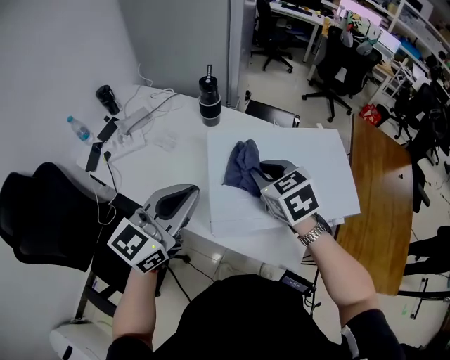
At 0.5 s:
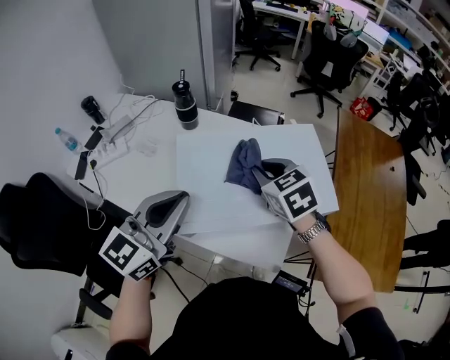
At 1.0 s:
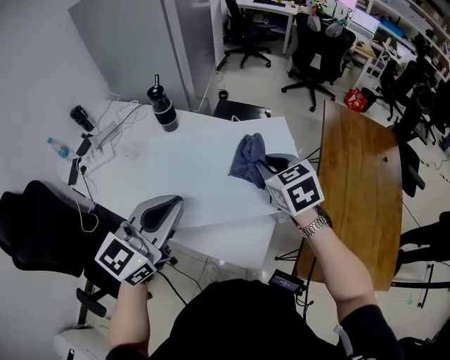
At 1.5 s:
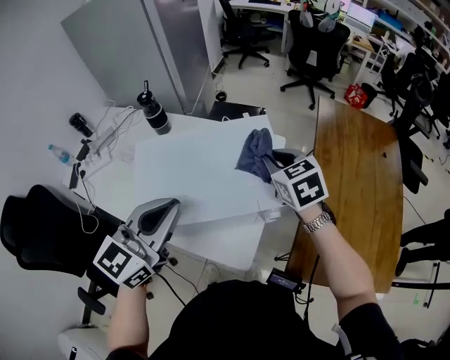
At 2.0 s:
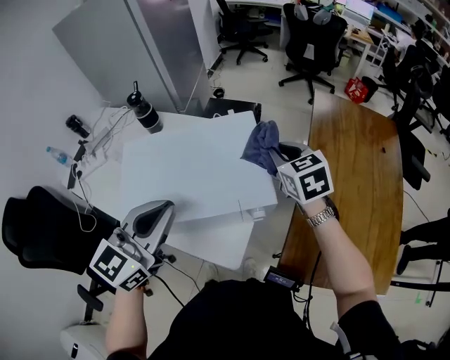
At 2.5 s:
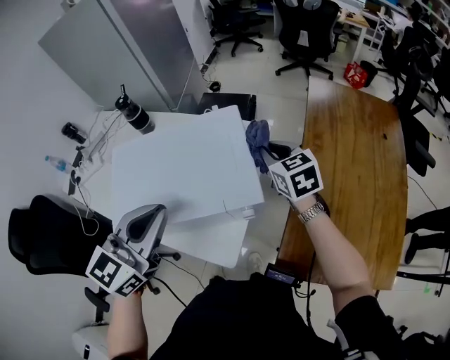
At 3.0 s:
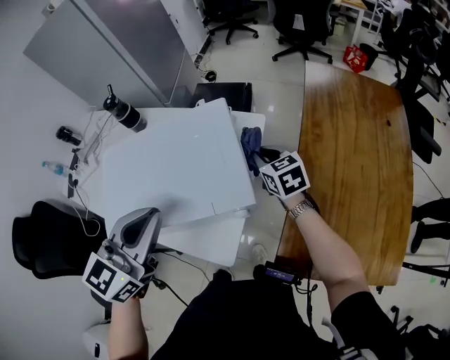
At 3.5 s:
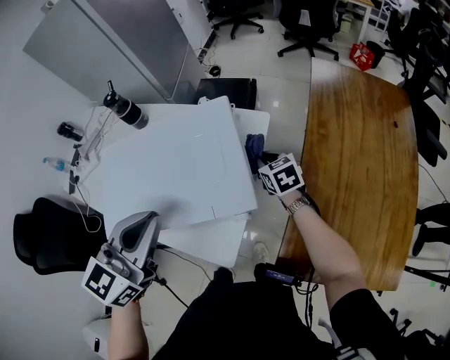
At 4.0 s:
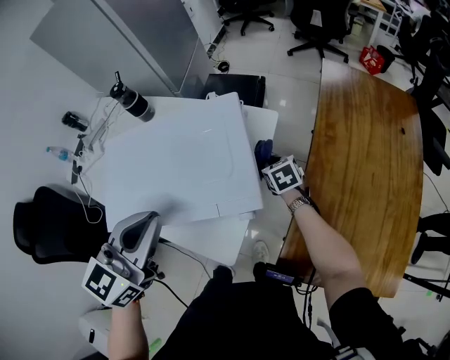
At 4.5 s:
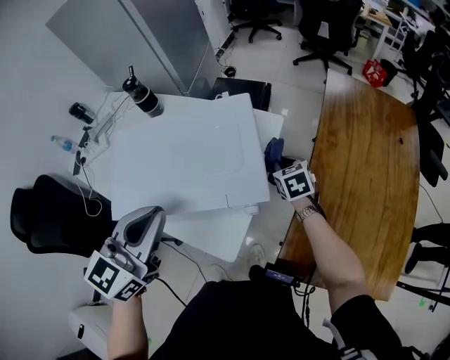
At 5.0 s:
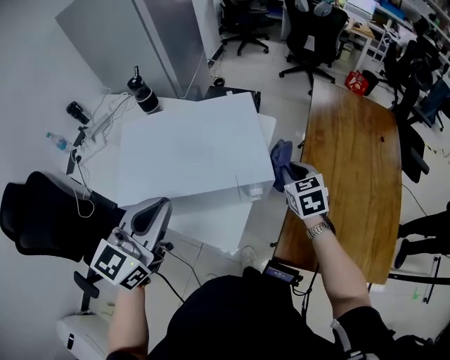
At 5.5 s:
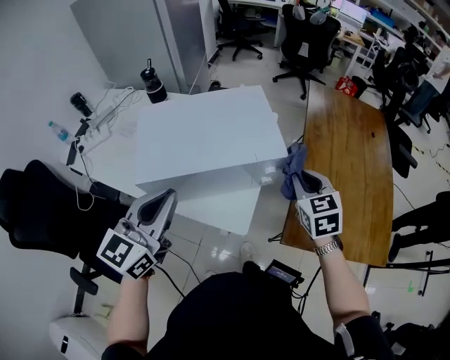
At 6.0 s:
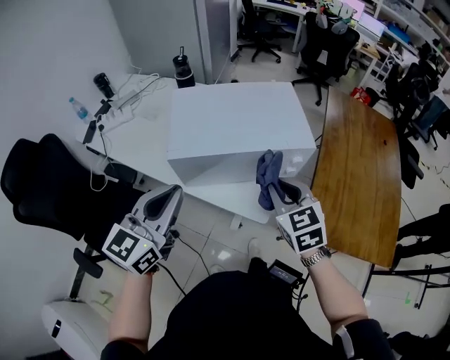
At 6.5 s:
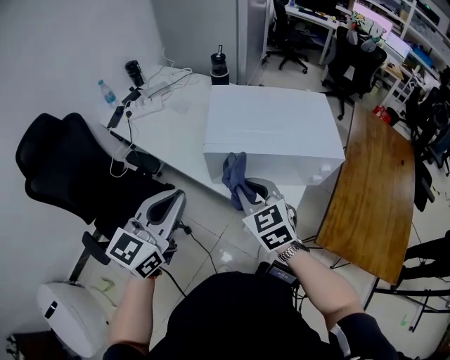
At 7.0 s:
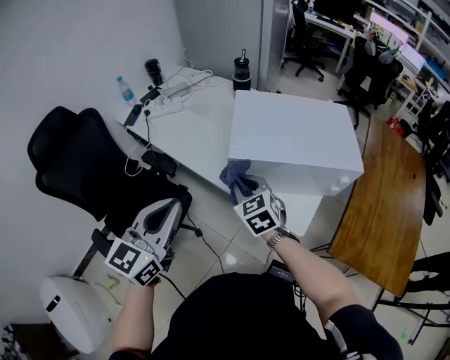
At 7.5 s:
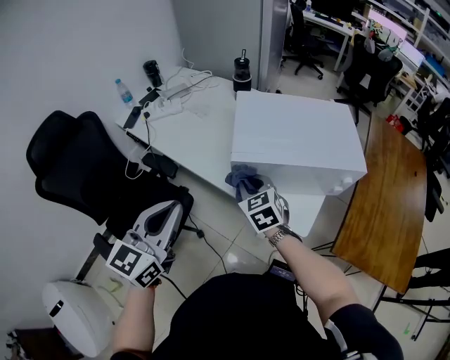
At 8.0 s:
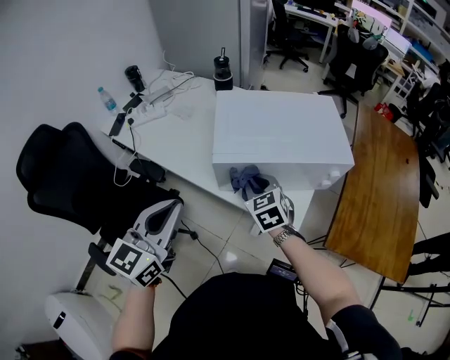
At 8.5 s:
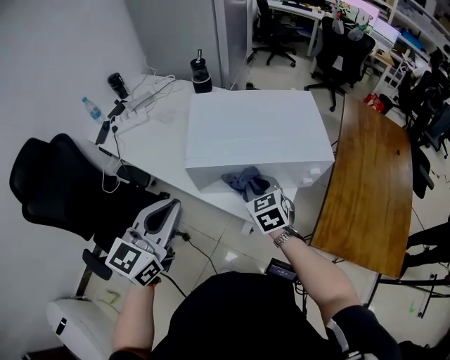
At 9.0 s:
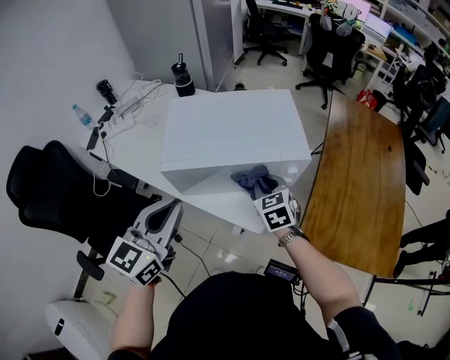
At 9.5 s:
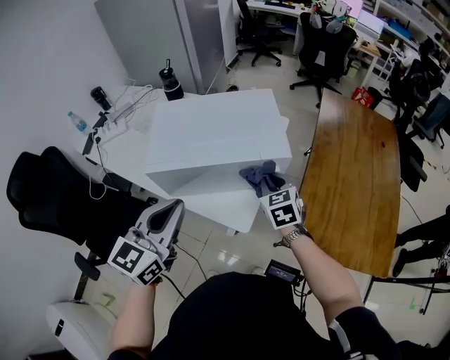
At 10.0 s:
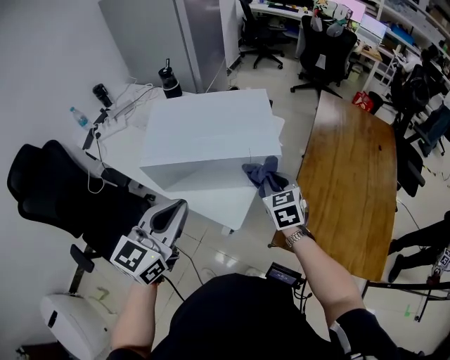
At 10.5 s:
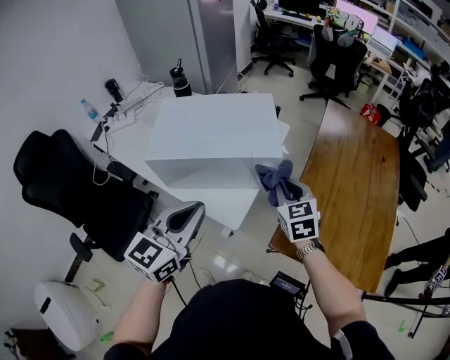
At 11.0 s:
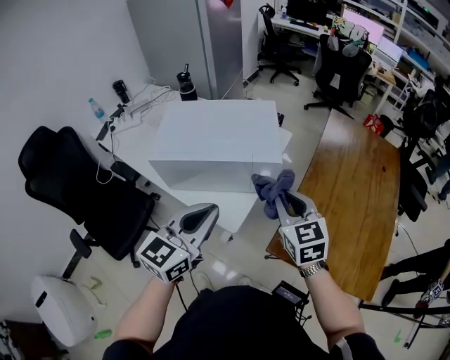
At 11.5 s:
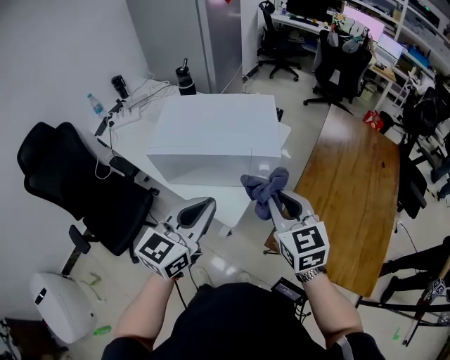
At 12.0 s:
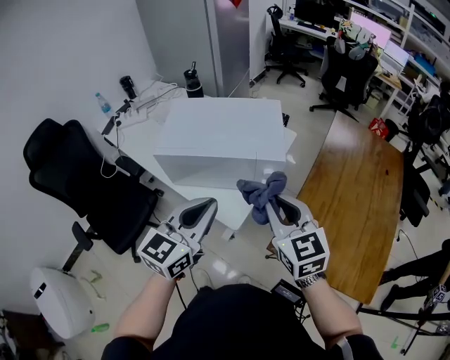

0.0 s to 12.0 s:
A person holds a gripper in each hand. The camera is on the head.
0.0 to 2.0 s: Both grippers move to the right, roughly 30 cm.
2.0 to 4.0 s: The right gripper goes some 25 cm downward.
4.0 to 6.0 s: The right gripper travels backward, upward and to the left by some 40 cm, and turns by approximately 30 degrees. Meanwhile the left gripper travels backward and to the left by roughly 25 cm.
6.0 to 8.0 s: The right gripper heads to the left, downward and forward, covering approximately 20 cm. Meanwhile the left gripper shifts some 10 cm to the left.
8.0 to 10.0 s: Both grippers move to the right, about 30 cm.
10.0 to 12.0 s: The left gripper moves to the right, approximately 5 cm. The right gripper shifts about 20 cm upward and backward, and rotates some 20 degrees.

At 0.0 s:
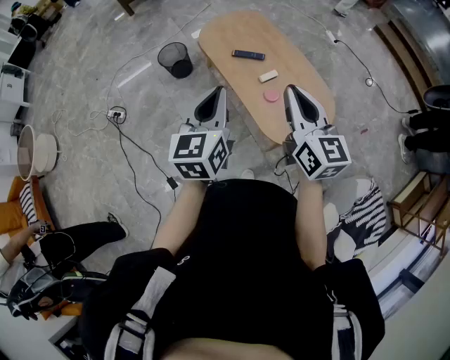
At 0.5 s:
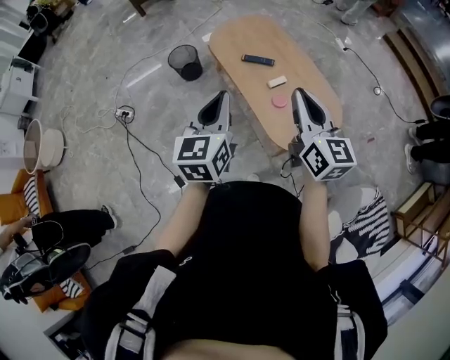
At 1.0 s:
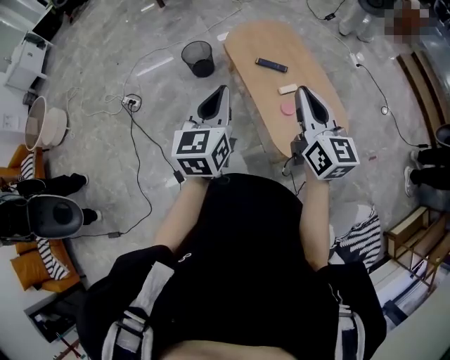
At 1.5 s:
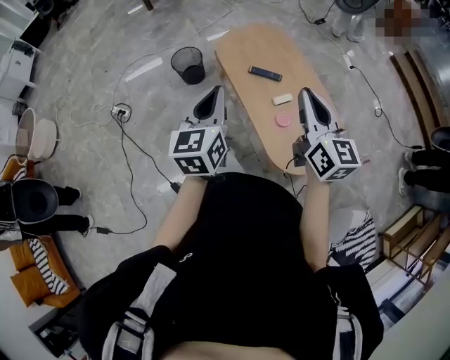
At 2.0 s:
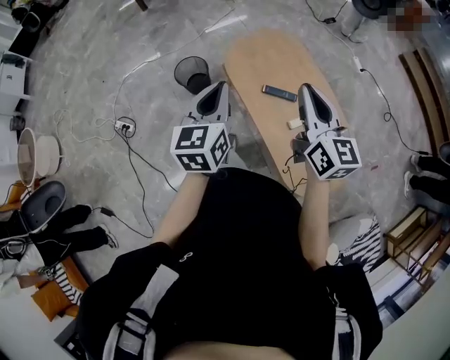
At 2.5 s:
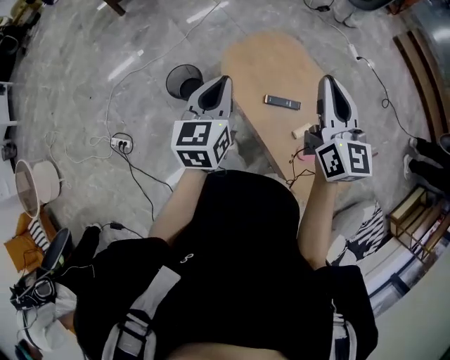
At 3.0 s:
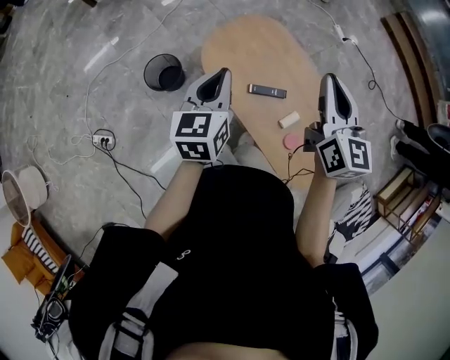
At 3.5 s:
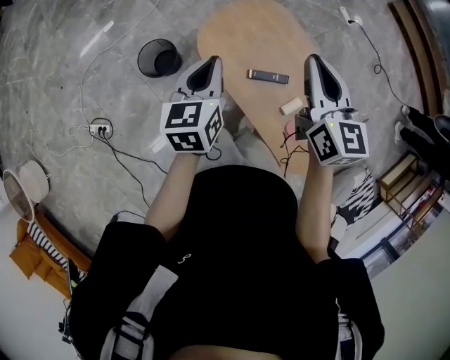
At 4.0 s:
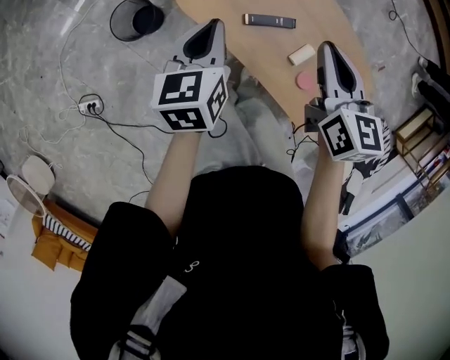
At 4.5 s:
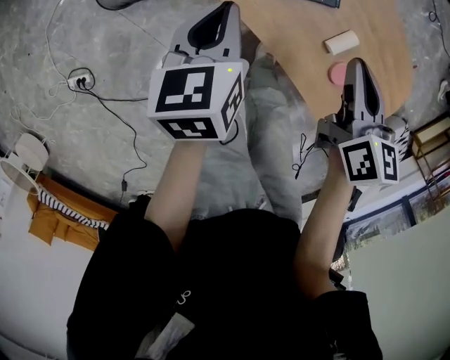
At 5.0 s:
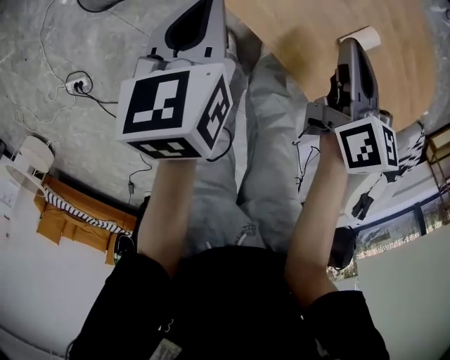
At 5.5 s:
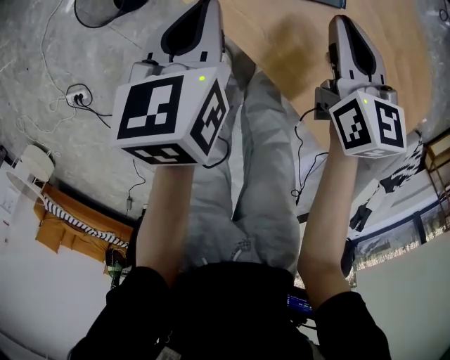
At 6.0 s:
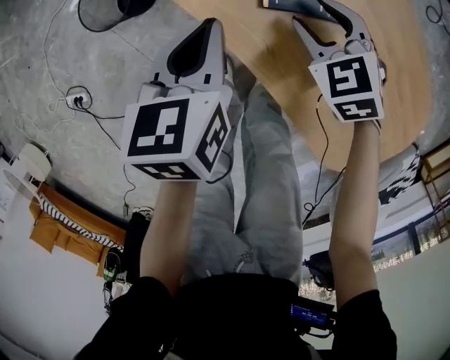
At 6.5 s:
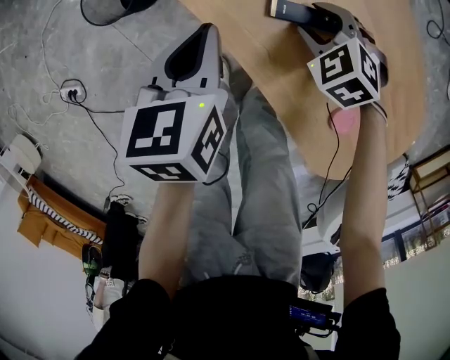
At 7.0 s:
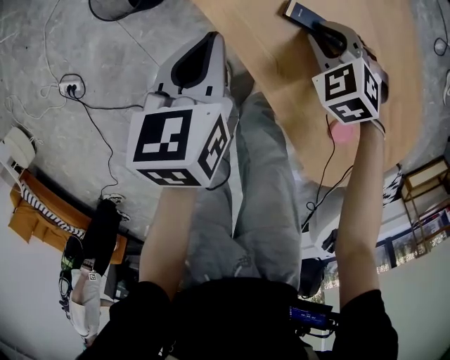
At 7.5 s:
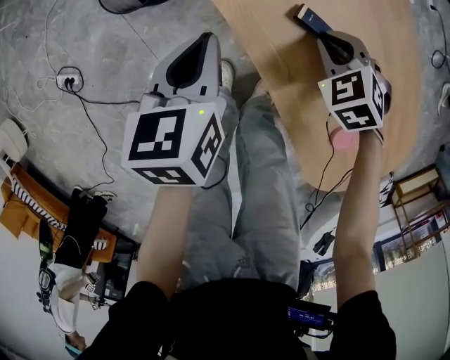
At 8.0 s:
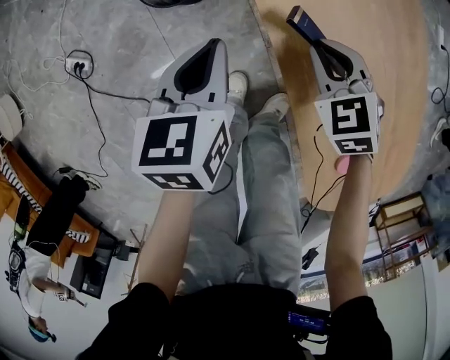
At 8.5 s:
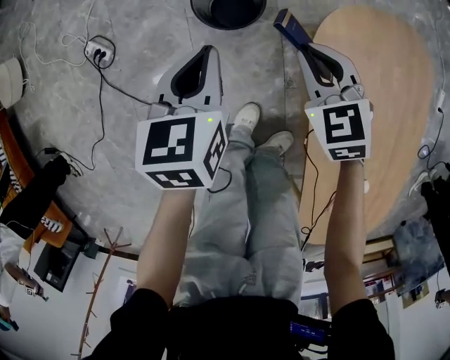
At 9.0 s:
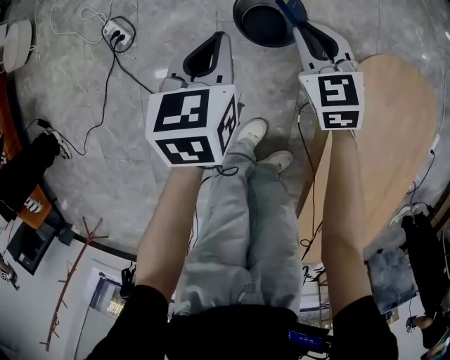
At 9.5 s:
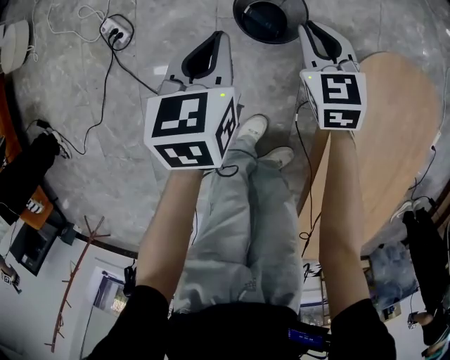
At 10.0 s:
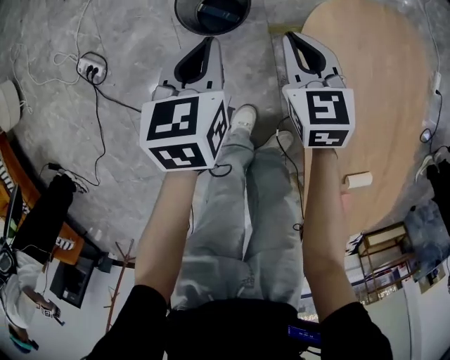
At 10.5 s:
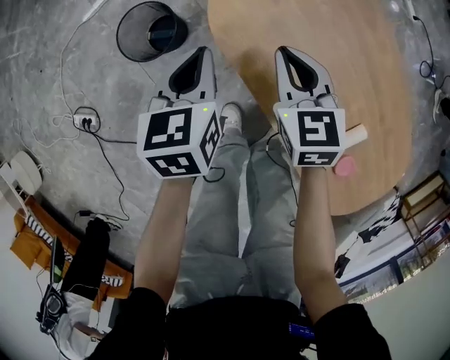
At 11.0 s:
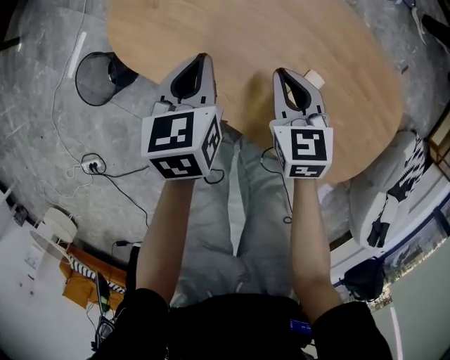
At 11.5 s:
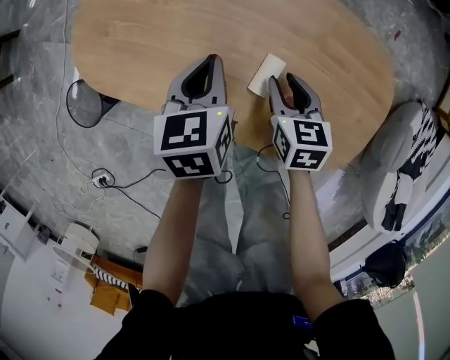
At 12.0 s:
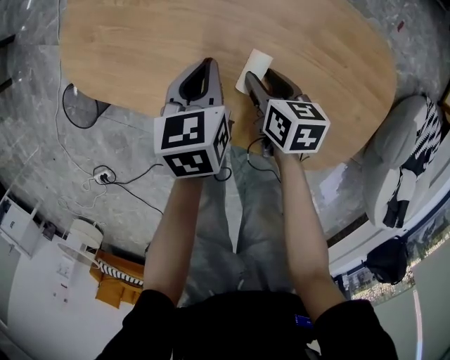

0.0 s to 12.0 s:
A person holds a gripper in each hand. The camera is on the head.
0.0 to 2.0 s: Both grippers move forward, approximately 30 cm.
2.0 to 4.0 s: Both grippers move downward and forward, about 25 cm. The right gripper rotates approximately 30 degrees. The left gripper swivels some 30 degrees.
4.0 to 6.0 s: The left gripper travels downward by roughly 20 cm; the right gripper heads downward, covering roughly 35 cm, rotates around the line of its fingers by approximately 40 degrees, counterclockwise from behind, and opens.
6.0 to 8.0 s: The left gripper is displaced to the left by about 15 cm. The right gripper heads to the left and forward, covering approximately 15 cm, and closes up.
8.0 to 10.0 s: The two grippers go approximately 15 cm forward and to the left. The right gripper turns by roughly 20 degrees.
10.0 to 12.0 s: Both grippers are carried approximately 60 cm. The left gripper swivels approximately 50 degrees. The right gripper rotates around the line of its fingers by about 70 degrees, clockwise from behind, and opens its fingers.

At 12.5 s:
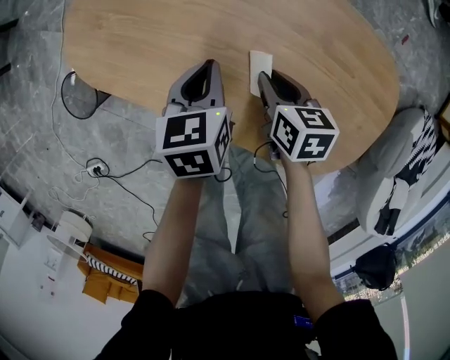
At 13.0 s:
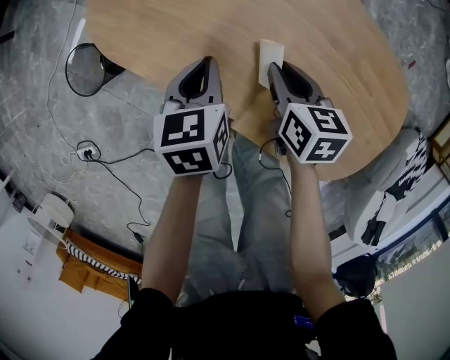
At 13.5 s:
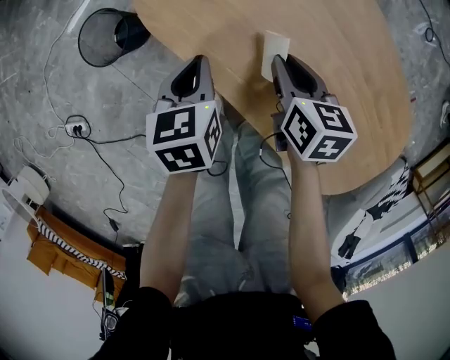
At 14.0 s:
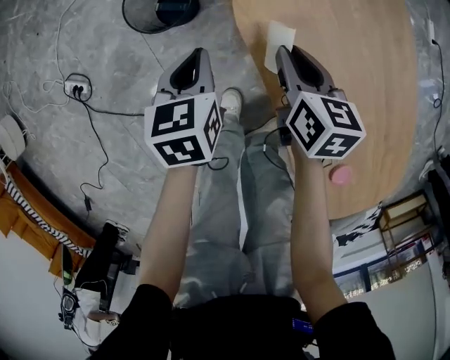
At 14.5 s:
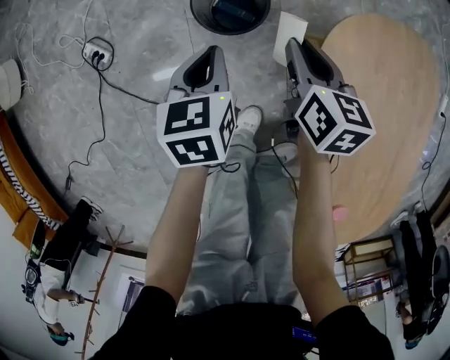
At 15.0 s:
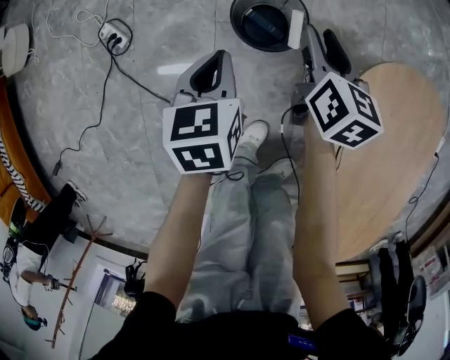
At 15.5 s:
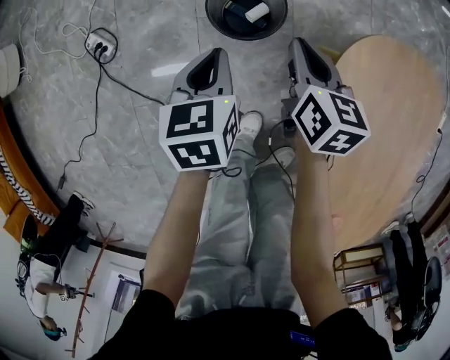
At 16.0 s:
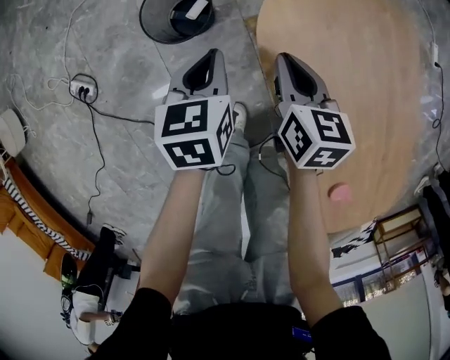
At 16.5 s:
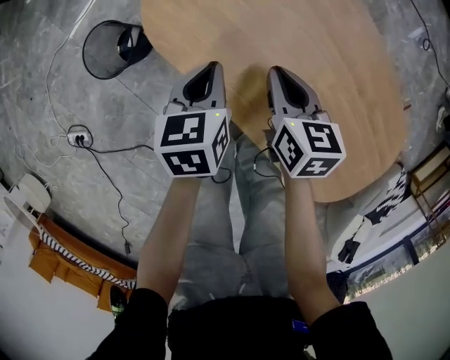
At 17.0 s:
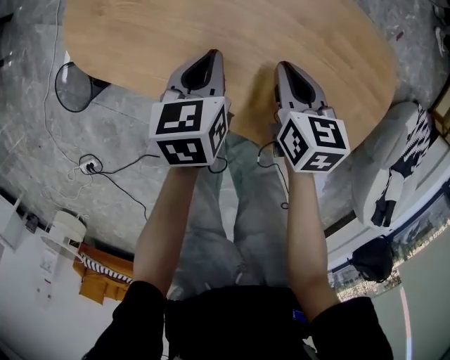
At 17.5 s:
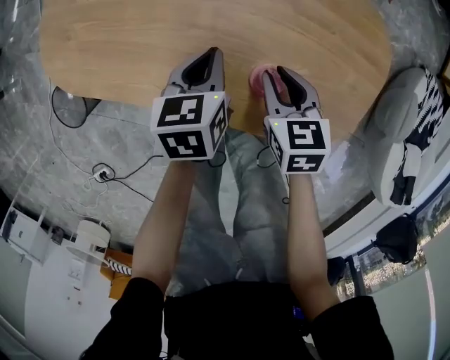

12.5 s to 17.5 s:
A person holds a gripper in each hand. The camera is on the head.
12.5 to 15.0 s: Both grippers are carried about 70 cm. The right gripper rotates some 50 degrees, while the left gripper rotates some 60 degrees.
15.0 to 17.5 s: Both grippers are carried approximately 70 cm. The right gripper rotates some 50 degrees. Meanwhile the left gripper rotates roughly 80 degrees.
